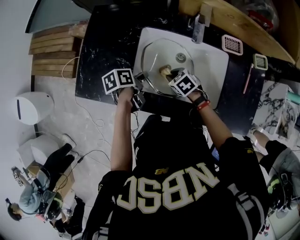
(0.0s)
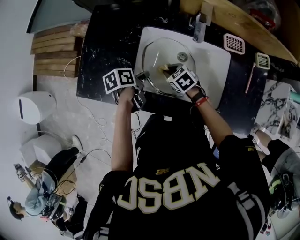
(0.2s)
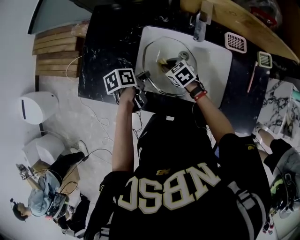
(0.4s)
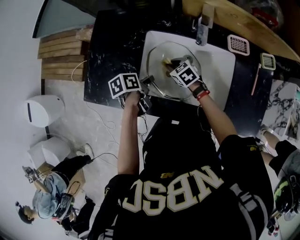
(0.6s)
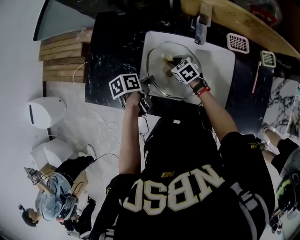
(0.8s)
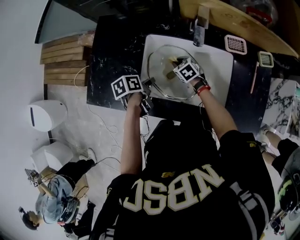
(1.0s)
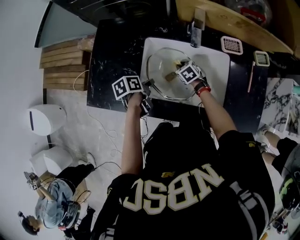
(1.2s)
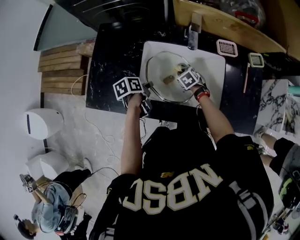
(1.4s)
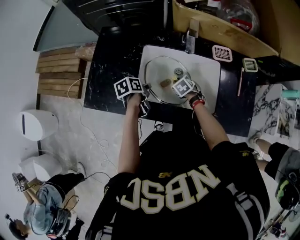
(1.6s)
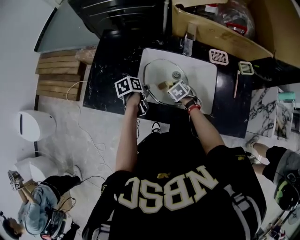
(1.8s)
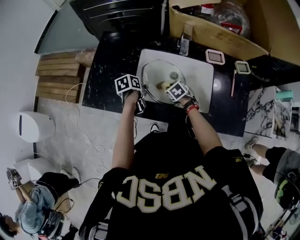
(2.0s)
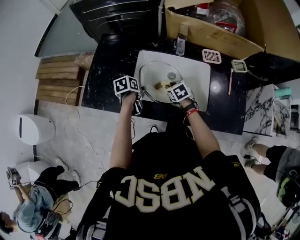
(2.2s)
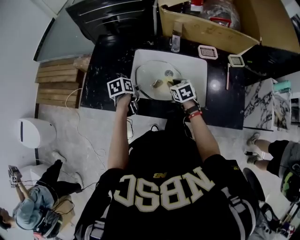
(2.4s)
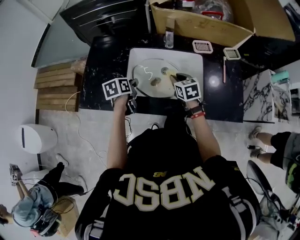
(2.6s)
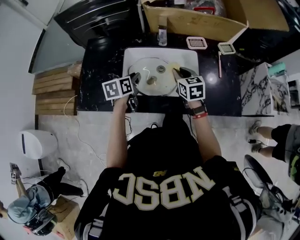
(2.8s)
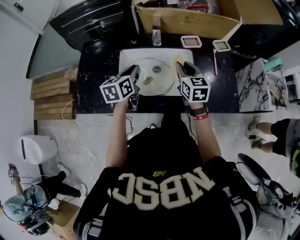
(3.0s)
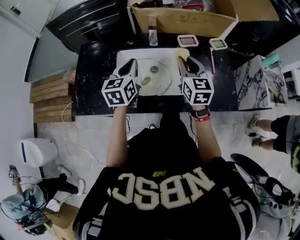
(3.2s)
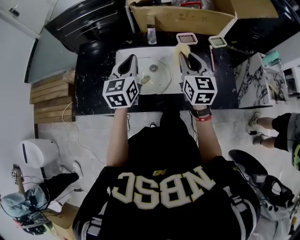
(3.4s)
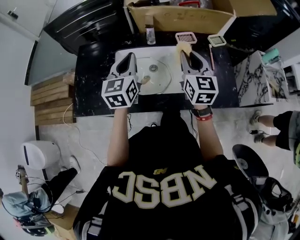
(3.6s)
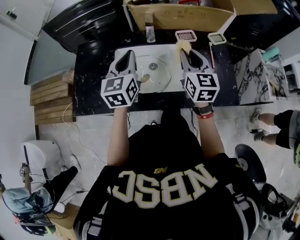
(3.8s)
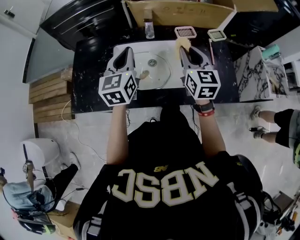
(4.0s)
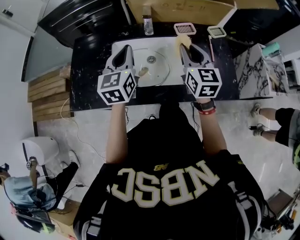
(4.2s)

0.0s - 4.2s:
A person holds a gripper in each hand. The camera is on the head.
0.0s - 1.4s: The right gripper changes place by approximately 10 cm.
1.4s - 2.8s: The right gripper travels upward by some 20 cm, and tips its fingers upward by about 30 degrees.
2.8s - 4.2s: The right gripper goes roughly 15 cm upward, and turns by approximately 20 degrees.

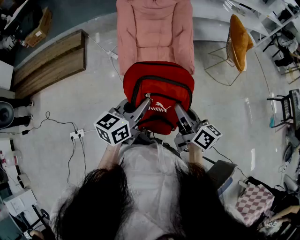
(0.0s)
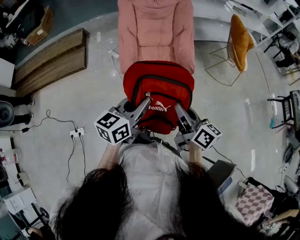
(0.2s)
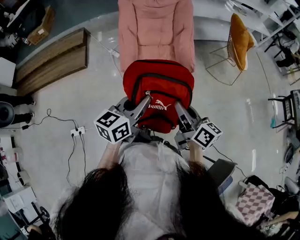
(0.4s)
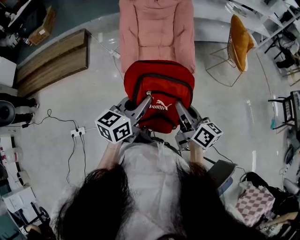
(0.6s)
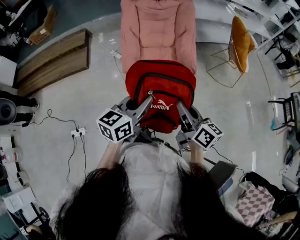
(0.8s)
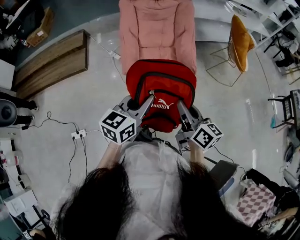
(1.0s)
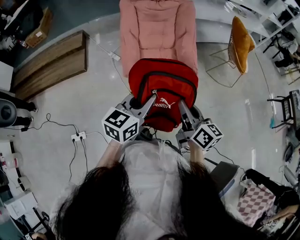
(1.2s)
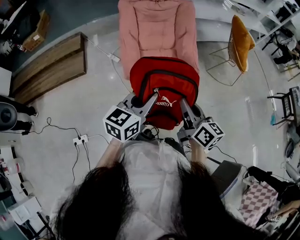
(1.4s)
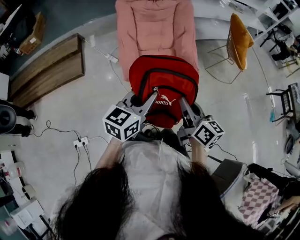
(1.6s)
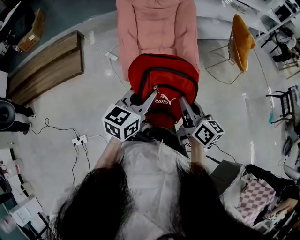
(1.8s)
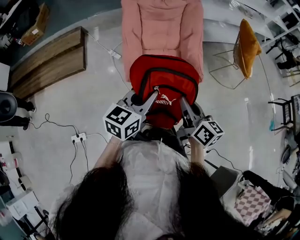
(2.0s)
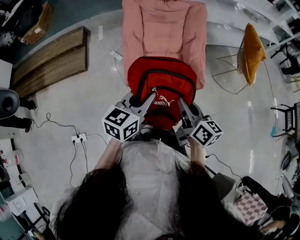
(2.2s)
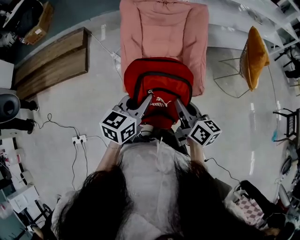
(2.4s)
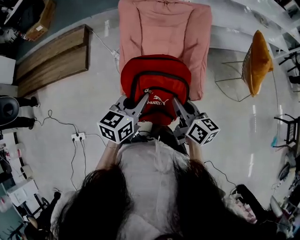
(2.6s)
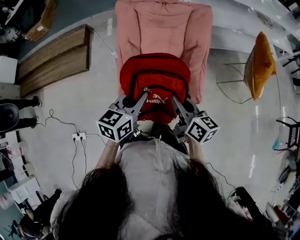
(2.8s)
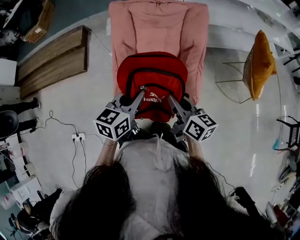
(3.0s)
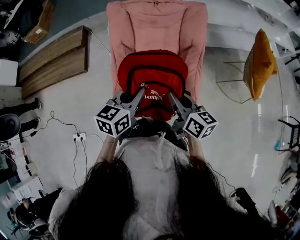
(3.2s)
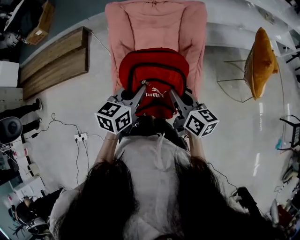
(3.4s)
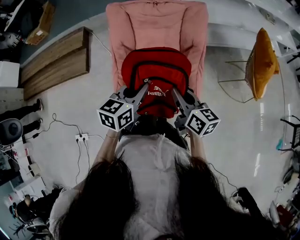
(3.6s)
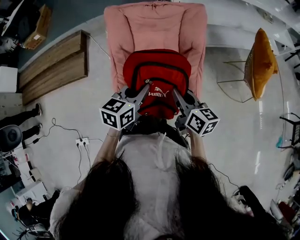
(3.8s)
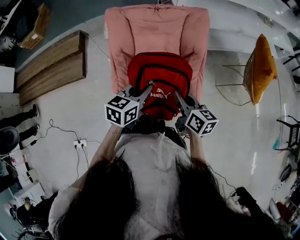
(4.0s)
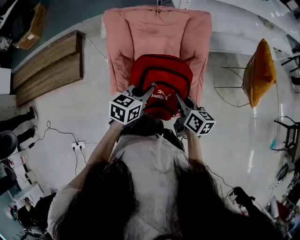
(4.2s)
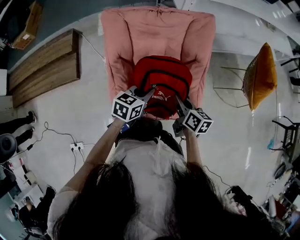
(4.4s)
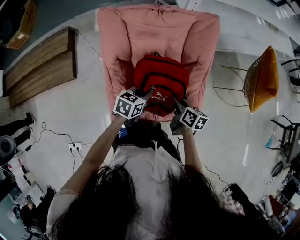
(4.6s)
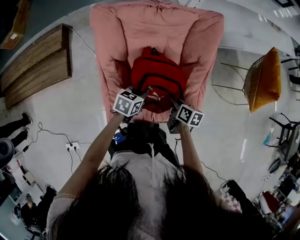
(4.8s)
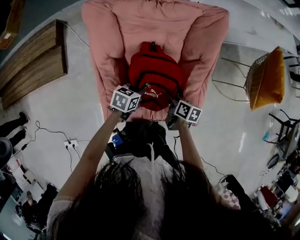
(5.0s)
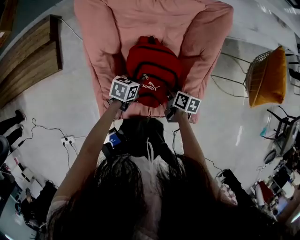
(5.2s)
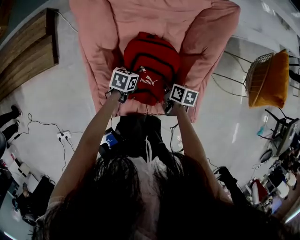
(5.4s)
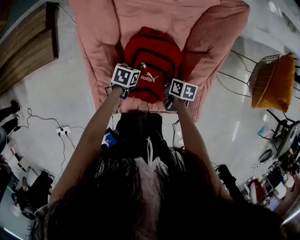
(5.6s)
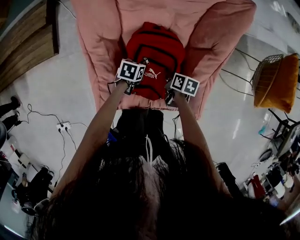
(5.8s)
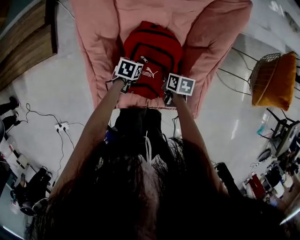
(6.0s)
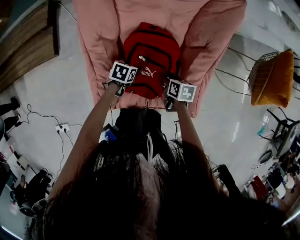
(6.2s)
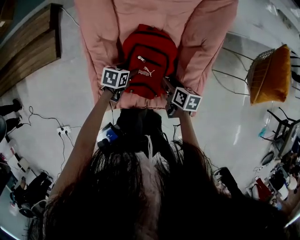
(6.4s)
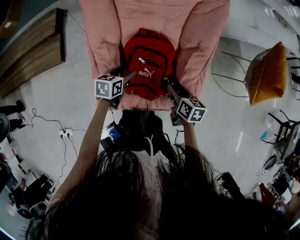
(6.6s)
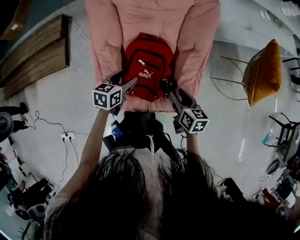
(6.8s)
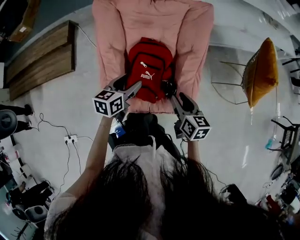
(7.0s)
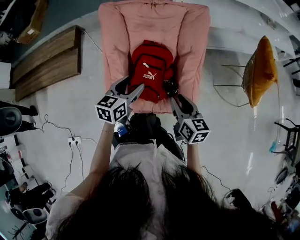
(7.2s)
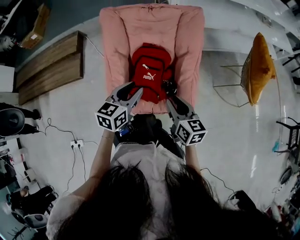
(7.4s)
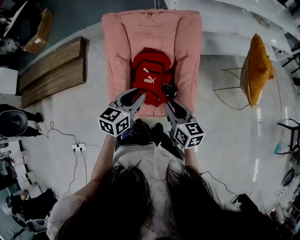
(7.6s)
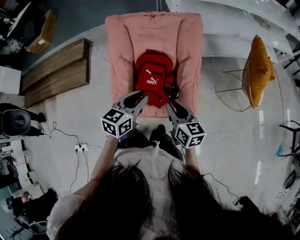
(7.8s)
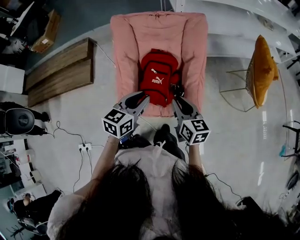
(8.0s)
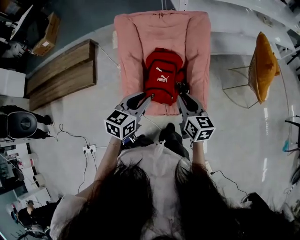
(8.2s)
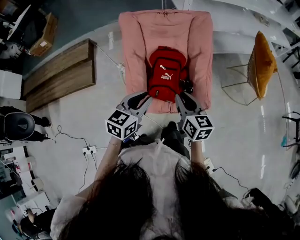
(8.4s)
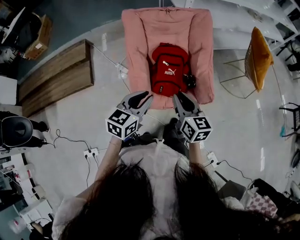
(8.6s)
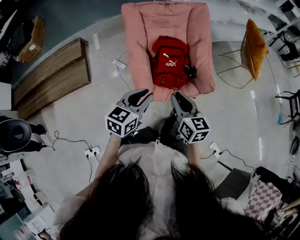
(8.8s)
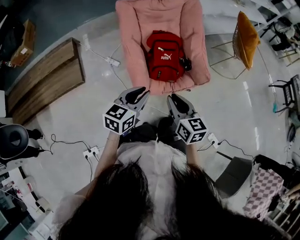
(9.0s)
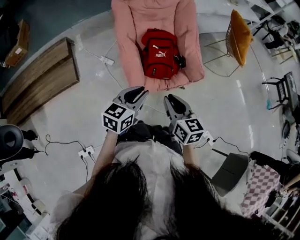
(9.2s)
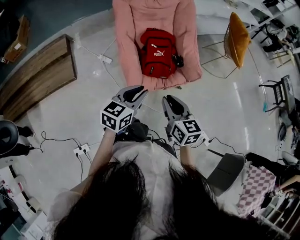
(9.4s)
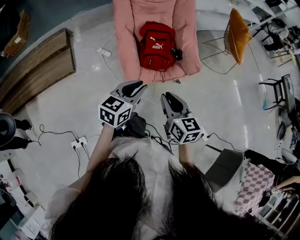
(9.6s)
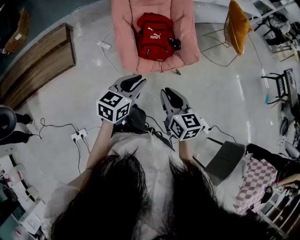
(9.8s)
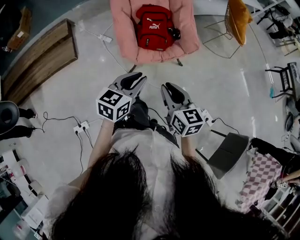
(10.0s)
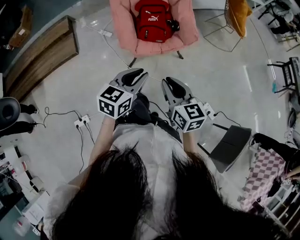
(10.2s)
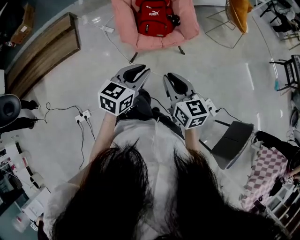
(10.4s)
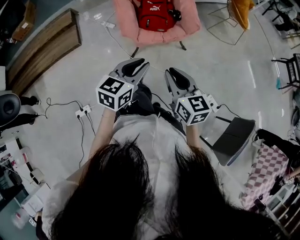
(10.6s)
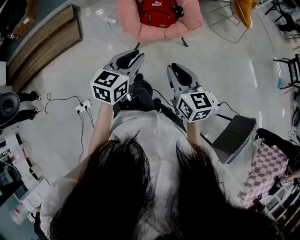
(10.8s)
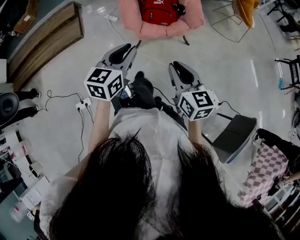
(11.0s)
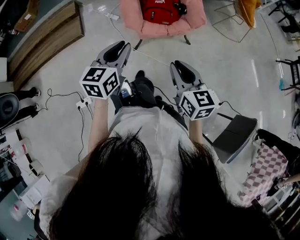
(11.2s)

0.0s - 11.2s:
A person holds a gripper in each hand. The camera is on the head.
0.0s - 1.6s: Both grippers move forward, approximately 5 cm.
1.6s - 3.2s: The two grippers go approximately 25 cm forward. The left gripper swivels some 20 degrees.
3.2s - 4.8s: The two grippers go roughly 30 cm downward and forward. The left gripper swivels roughly 30 degrees. The right gripper turns by about 30 degrees.
4.8s - 6.4s: The left gripper travels downward by some 10 cm, and opens its fingers. The right gripper shifts roughly 5 cm downward, and opens up.
6.4s - 8.0s: Both grippers move upward and backward, some 35 cm. The right gripper turns by some 40 degrees, and closes its fingers; the left gripper rotates some 40 degrees, and closes.
8.0s - 9.6s: The two grippers go roughly 30 cm backward and to the left.
9.6s - 11.2s: The left gripper goes roughly 15 cm backward, and swivels some 20 degrees; the right gripper is displaced backward and to the right by approximately 20 cm.

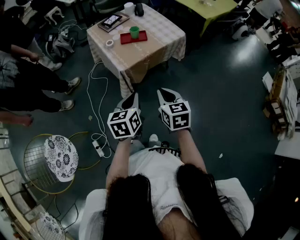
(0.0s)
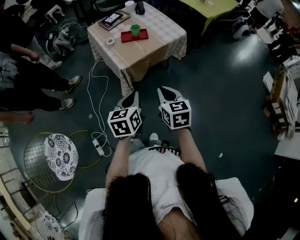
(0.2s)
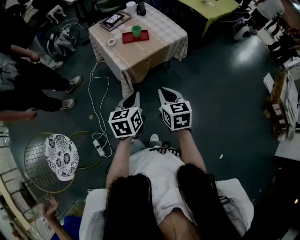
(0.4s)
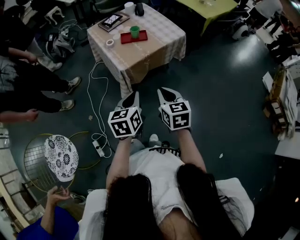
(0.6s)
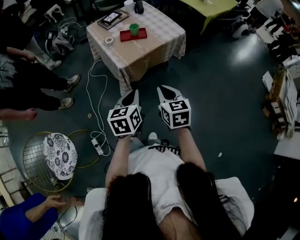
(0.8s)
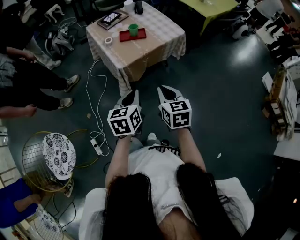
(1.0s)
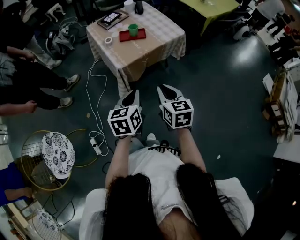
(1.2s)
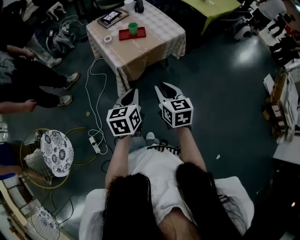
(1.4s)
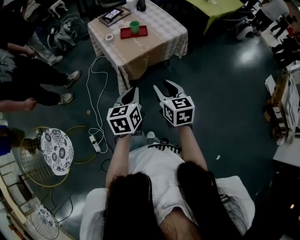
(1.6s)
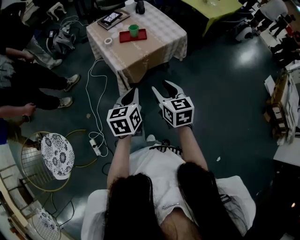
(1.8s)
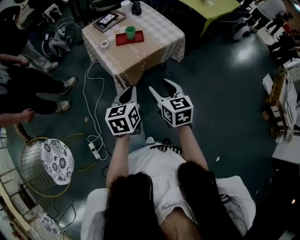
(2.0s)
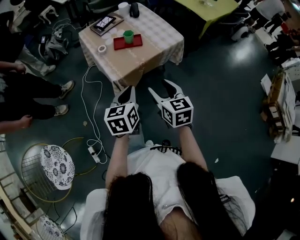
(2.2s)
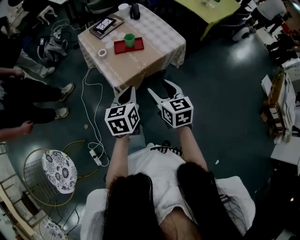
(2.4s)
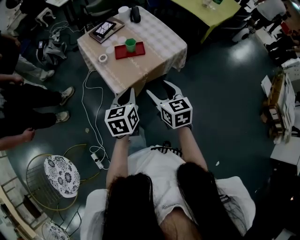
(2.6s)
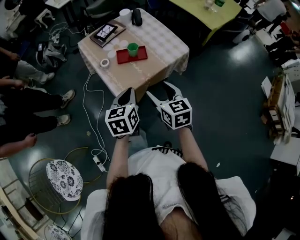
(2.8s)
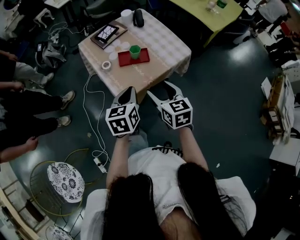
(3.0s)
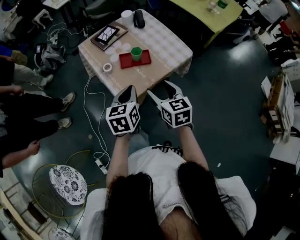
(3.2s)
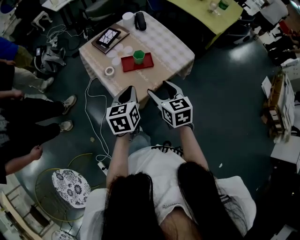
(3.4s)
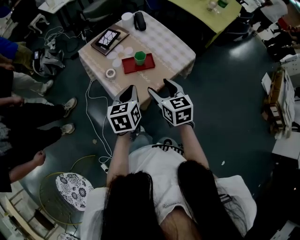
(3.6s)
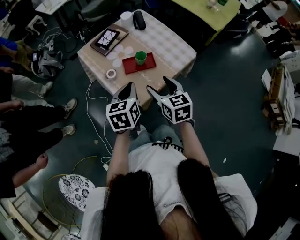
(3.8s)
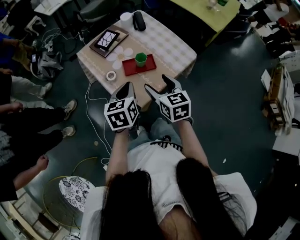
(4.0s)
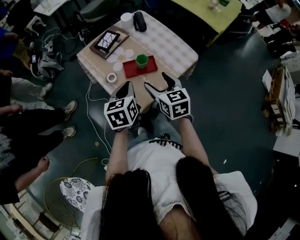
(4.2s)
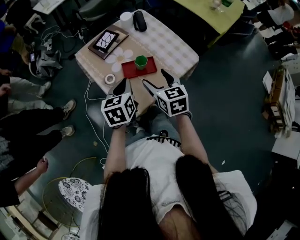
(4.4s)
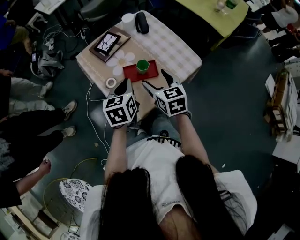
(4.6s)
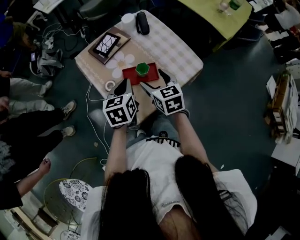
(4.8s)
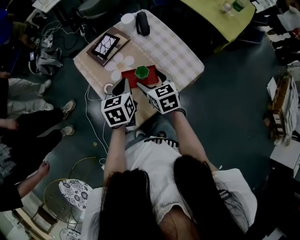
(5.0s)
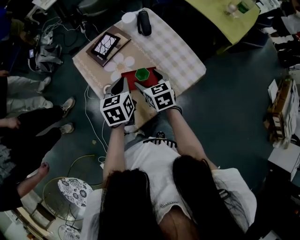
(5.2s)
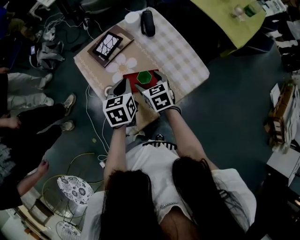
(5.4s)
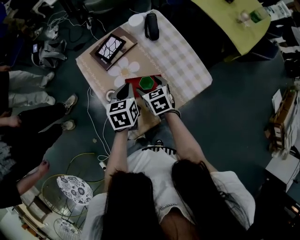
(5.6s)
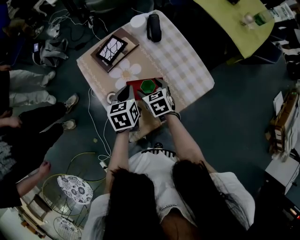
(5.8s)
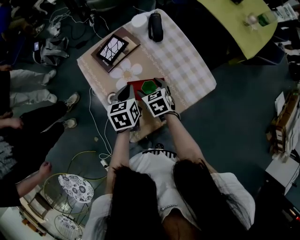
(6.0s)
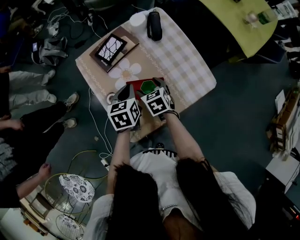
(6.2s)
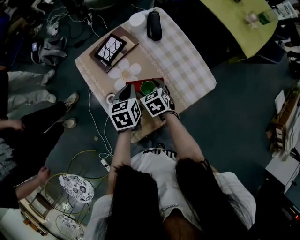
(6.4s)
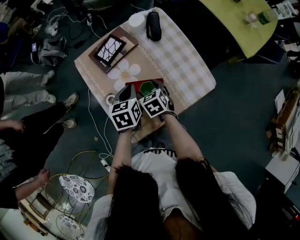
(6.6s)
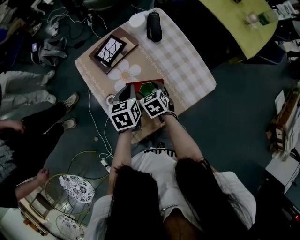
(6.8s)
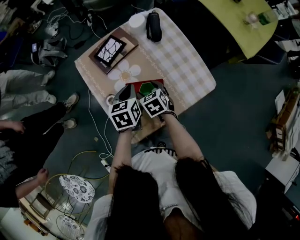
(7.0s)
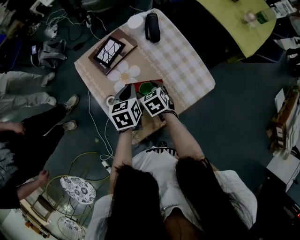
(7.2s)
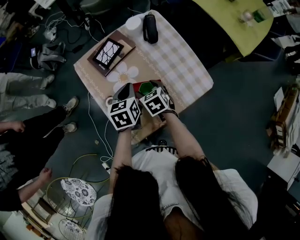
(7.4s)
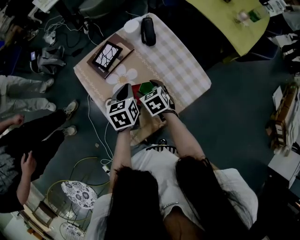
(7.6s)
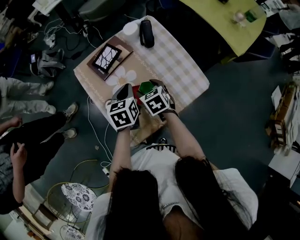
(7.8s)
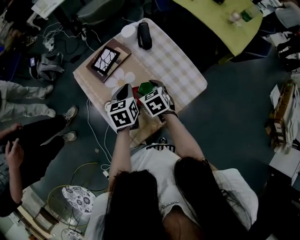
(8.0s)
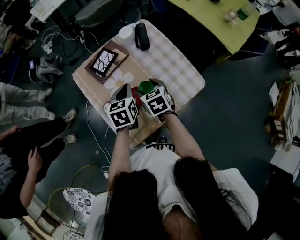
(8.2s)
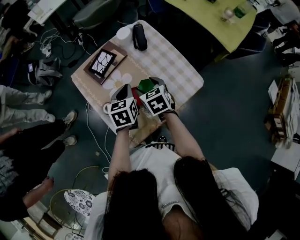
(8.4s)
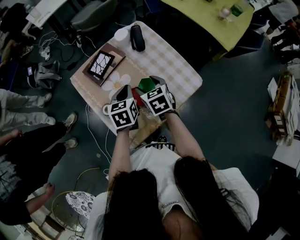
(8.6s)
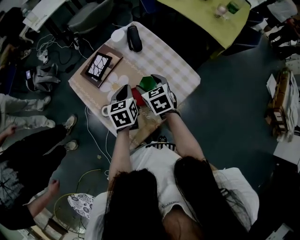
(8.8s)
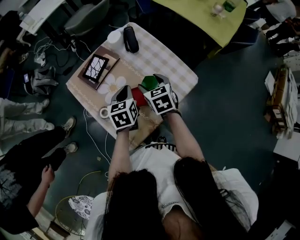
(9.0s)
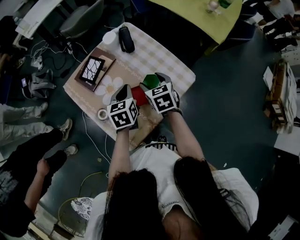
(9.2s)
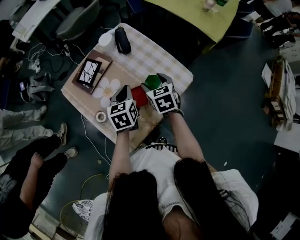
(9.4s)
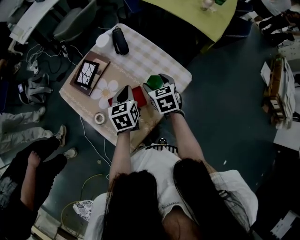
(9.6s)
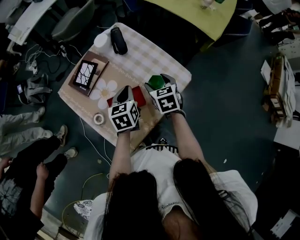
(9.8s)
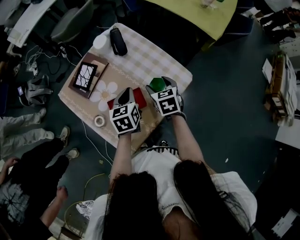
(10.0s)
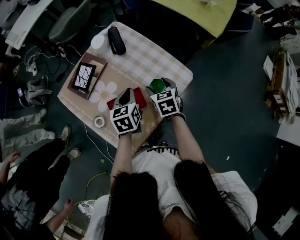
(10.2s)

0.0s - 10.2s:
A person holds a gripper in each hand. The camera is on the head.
0.0s - 1.4s: The grippers move only a little.
1.4s - 3.0s: Both grippers travel together forward, about 25 cm. The right gripper opens.
3.0s - 4.4s: Both grippers move forward, about 15 cm.
4.4s - 5.8s: The right gripper moves downward and forward, roughly 20 cm, and turns by about 20 degrees, while the left gripper travels forward and downward by some 15 cm.
5.8s - 7.2s: There are only small adjustments of the grippers.
7.2s - 8.8s: The right gripper travels upward and to the right by approximately 10 cm.
8.8s - 10.2s: The left gripper goes approximately 5 cm to the right, while the right gripper moves to the right and downward, about 10 cm.
